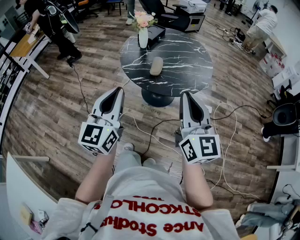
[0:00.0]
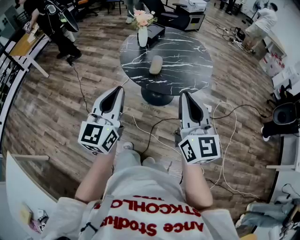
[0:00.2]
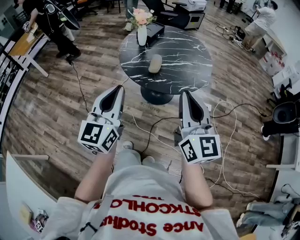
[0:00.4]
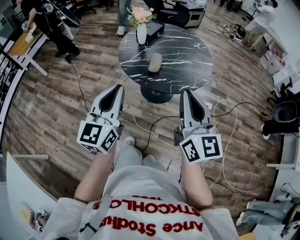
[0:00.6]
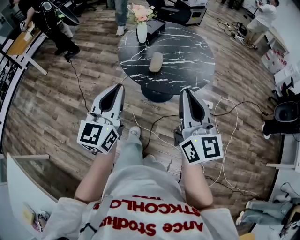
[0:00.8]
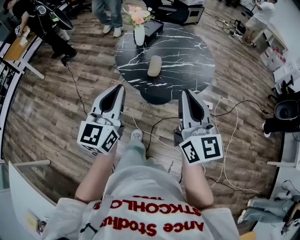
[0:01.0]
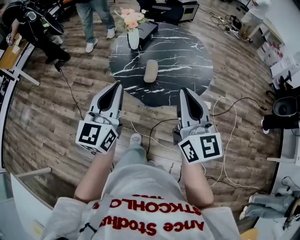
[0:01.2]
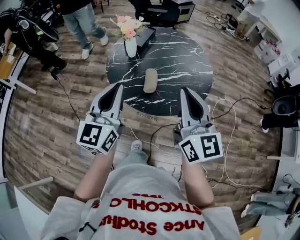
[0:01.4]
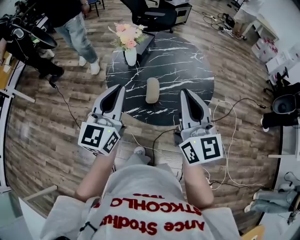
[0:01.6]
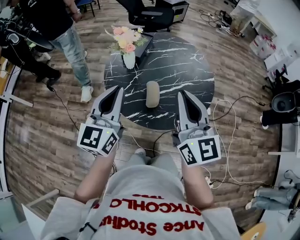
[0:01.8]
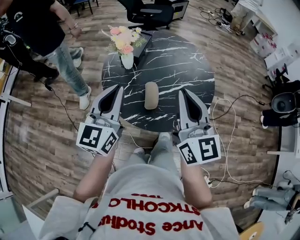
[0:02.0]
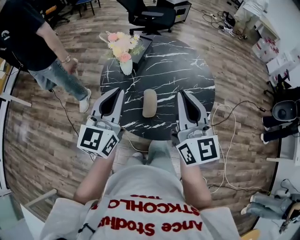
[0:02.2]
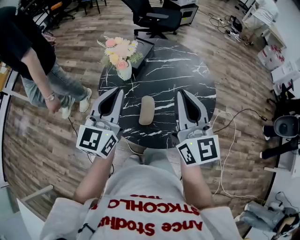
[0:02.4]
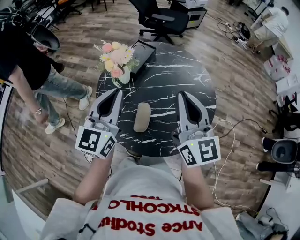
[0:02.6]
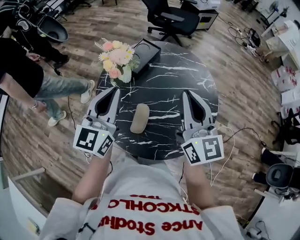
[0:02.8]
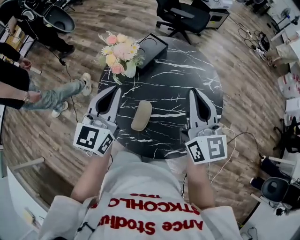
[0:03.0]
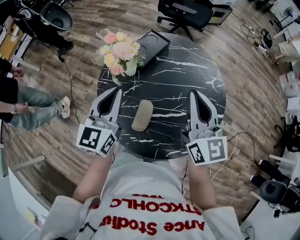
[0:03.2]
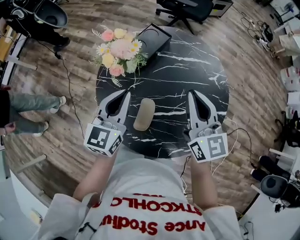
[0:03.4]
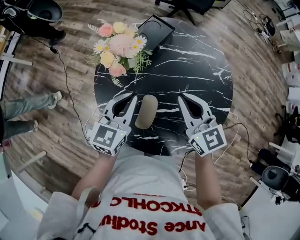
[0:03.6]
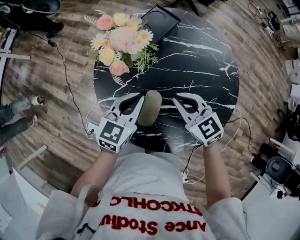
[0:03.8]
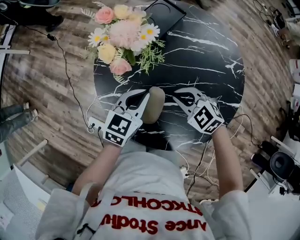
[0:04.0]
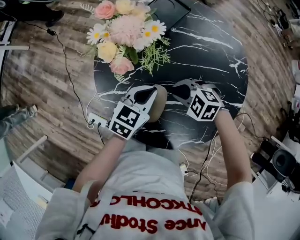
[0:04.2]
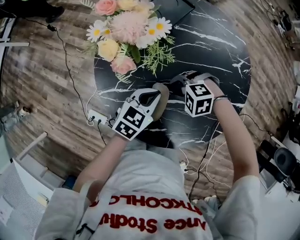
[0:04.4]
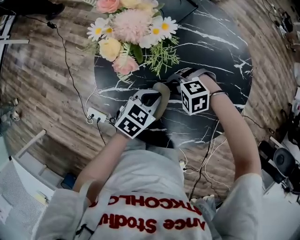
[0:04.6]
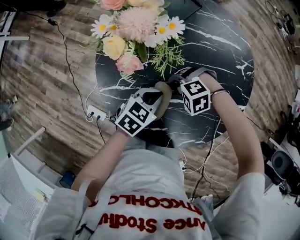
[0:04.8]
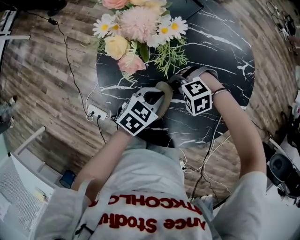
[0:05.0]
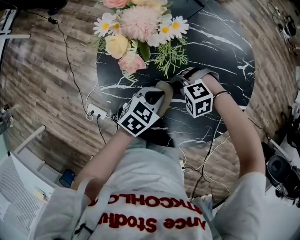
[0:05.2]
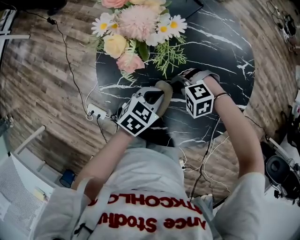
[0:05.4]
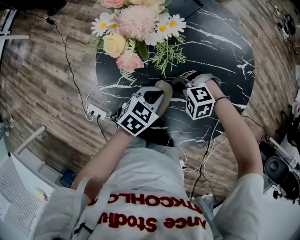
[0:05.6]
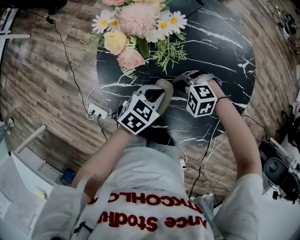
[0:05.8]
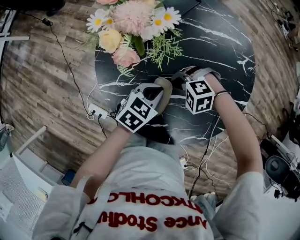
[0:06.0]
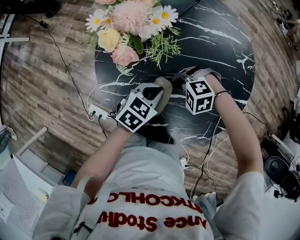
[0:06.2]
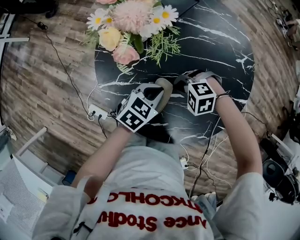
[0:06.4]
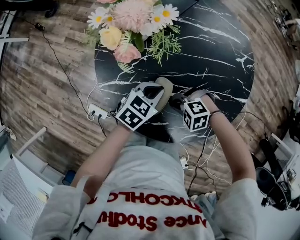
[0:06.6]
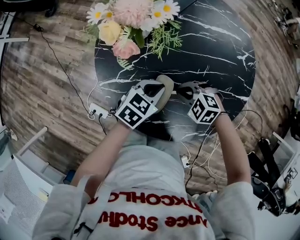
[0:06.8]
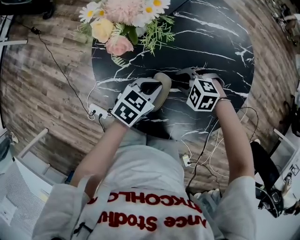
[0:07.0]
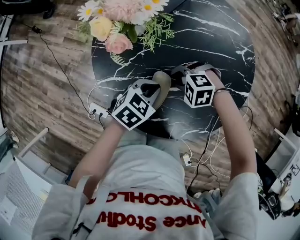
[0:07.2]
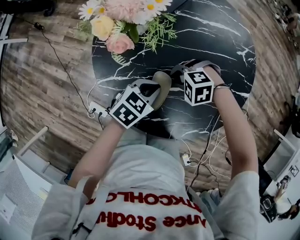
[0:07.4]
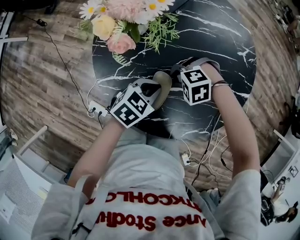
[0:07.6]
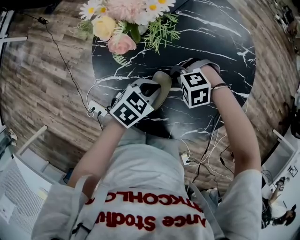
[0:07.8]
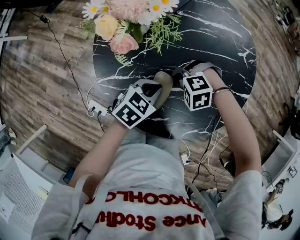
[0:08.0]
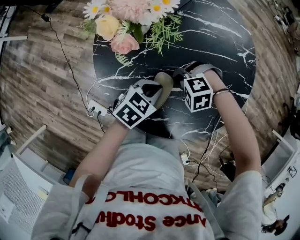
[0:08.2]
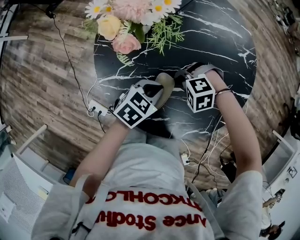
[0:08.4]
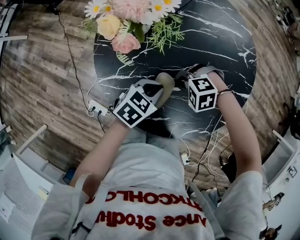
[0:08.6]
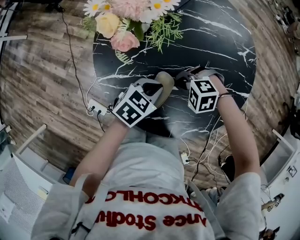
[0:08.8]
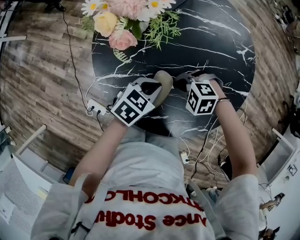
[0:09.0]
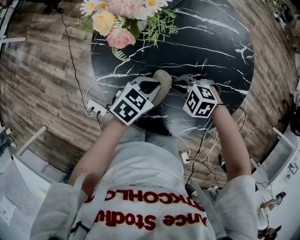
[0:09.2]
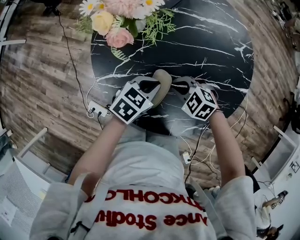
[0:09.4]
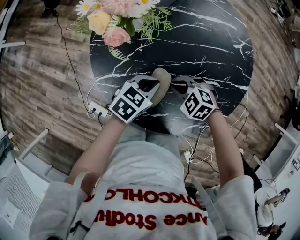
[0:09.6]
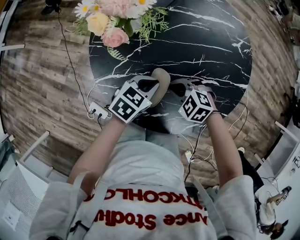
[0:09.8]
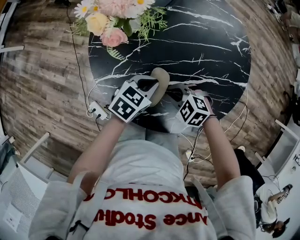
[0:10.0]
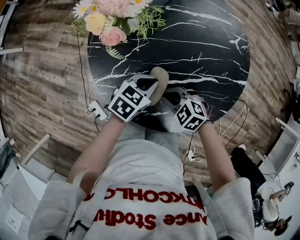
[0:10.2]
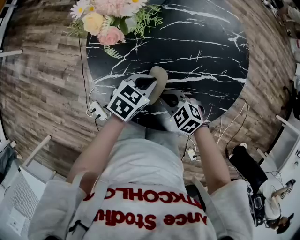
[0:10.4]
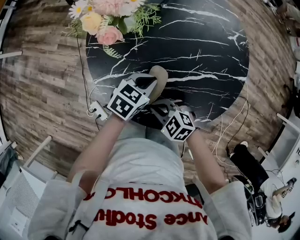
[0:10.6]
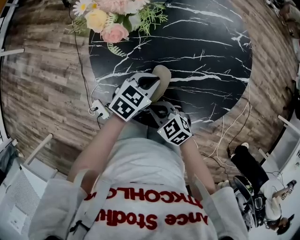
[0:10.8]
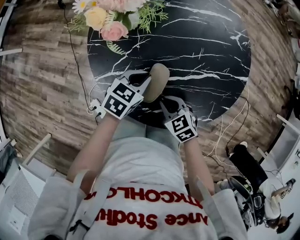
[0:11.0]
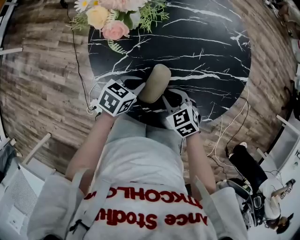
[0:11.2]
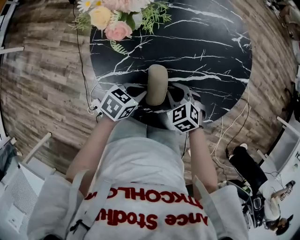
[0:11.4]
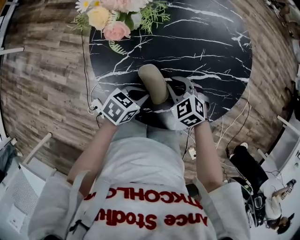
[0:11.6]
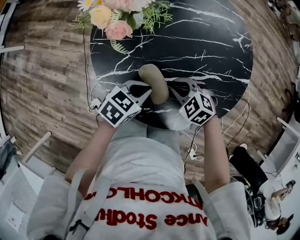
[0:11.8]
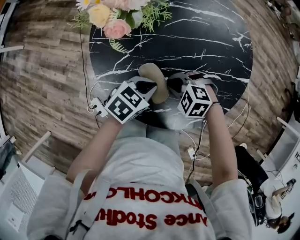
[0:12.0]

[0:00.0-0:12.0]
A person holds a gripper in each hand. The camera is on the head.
0:00.0 to 0:01.6: The two grippers go some 25 cm forward.
0:01.6 to 0:03.0: The grippers both shift forward by roughly 25 cm.
0:03.0 to 0:04.4: Both grippers travel together downward, about 35 cm. The right gripper tilts its fingers roughly 70 degrees downward, and opens. The left gripper angles its fingers downward, by some 30 degrees.
0:04.4 to 0:06.0: The right gripper closes.
0:07.6 to 0:09.0: The grippers move only a little.
0:09.0 to 0:10.4: The right gripper shifts by roughly 5 cm, and swivels some 40 degrees.
0:10.4 to 0:12.0: The right gripper rotates approximately 20 degrees.

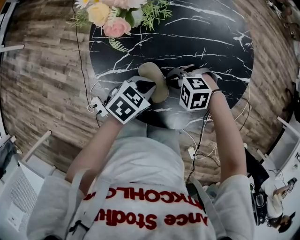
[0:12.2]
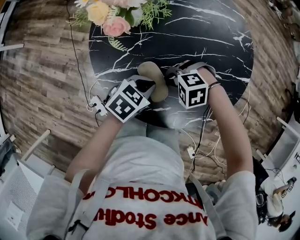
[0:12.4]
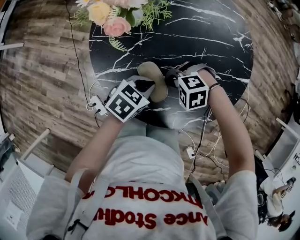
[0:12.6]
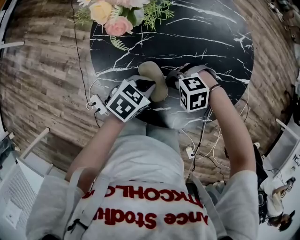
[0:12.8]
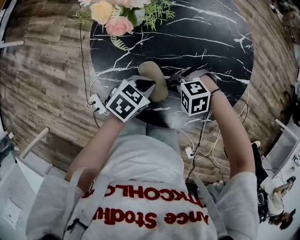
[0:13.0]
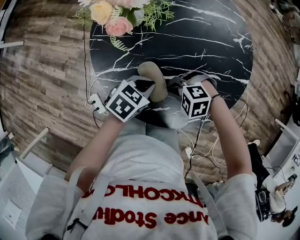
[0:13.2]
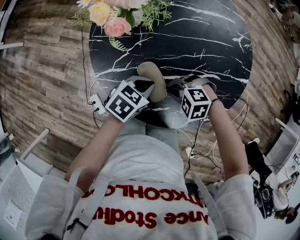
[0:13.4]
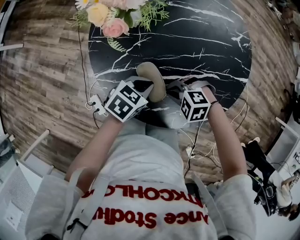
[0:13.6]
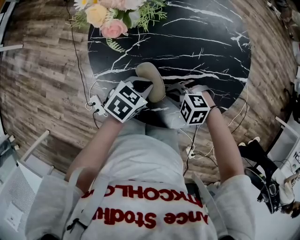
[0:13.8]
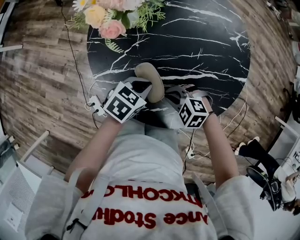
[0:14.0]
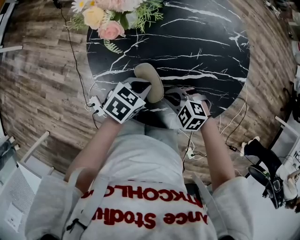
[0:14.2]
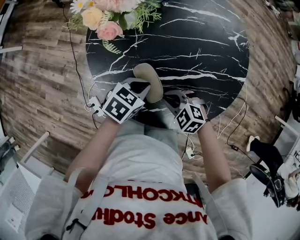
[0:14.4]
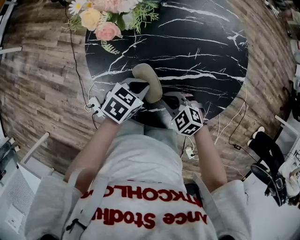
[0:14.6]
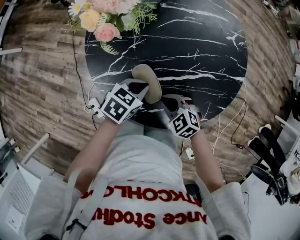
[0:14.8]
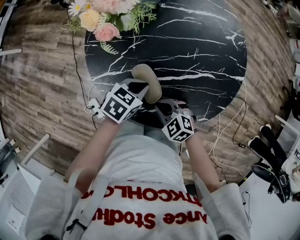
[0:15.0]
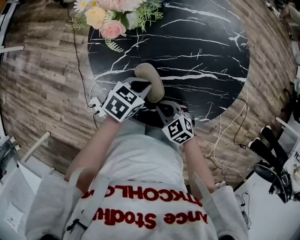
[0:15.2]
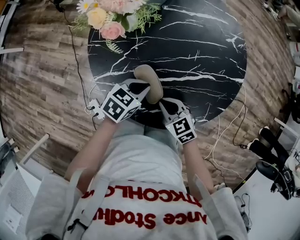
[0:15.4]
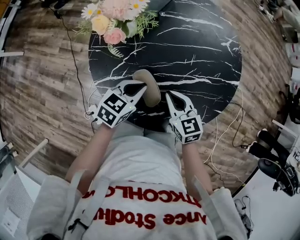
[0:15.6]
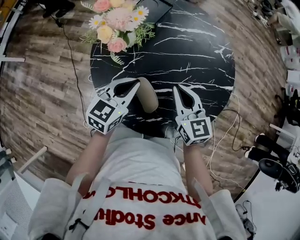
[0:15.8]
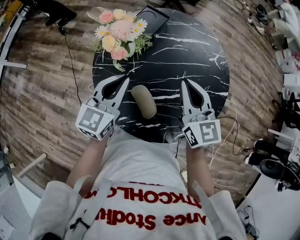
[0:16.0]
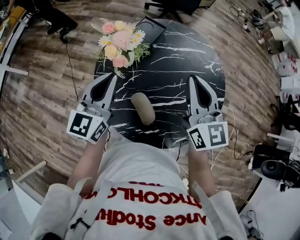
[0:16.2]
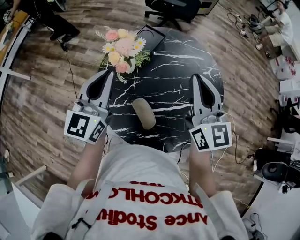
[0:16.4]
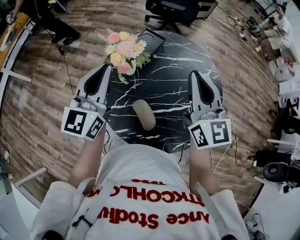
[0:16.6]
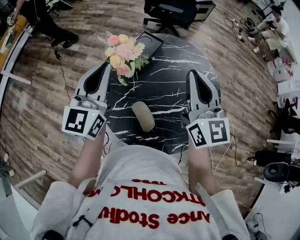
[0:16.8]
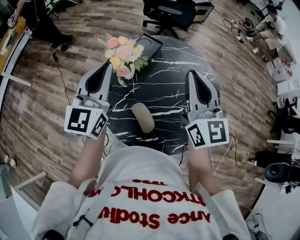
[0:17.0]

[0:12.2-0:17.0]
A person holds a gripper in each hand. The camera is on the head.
0:12.2 to 0:13.8: The grippers stay close to where they were, moving slightly.
0:13.8 to 0:15.4: The right gripper rotates roughly 50 degrees.
0:15.4 to 0:17.0: The two grippers go some 40 cm upward. The left gripper angles its fingers upward, by about 50 degrees, while the right gripper tips its fingers upward by roughly 50 degrees.

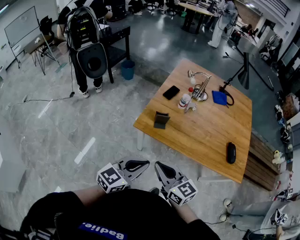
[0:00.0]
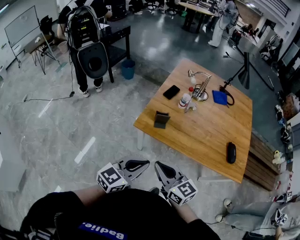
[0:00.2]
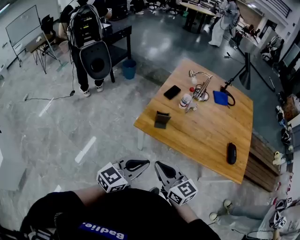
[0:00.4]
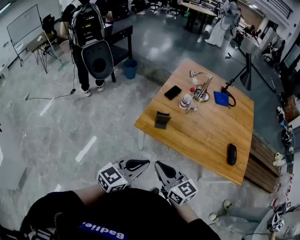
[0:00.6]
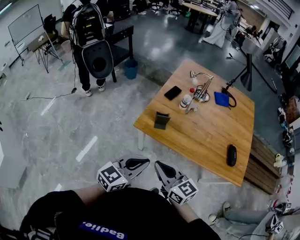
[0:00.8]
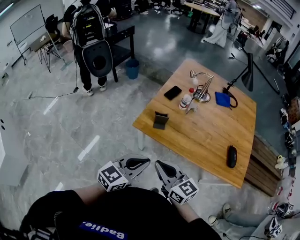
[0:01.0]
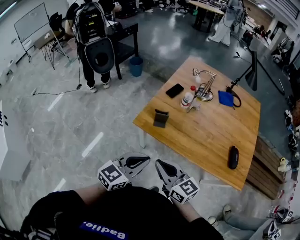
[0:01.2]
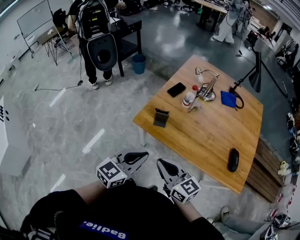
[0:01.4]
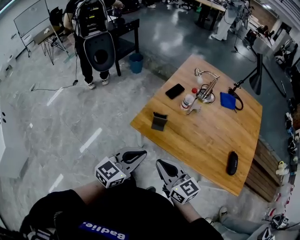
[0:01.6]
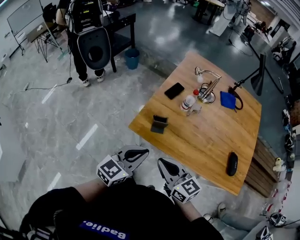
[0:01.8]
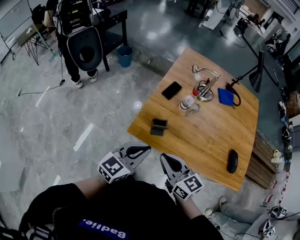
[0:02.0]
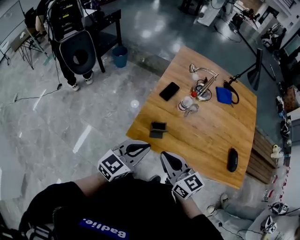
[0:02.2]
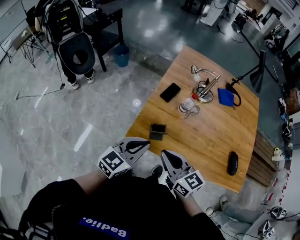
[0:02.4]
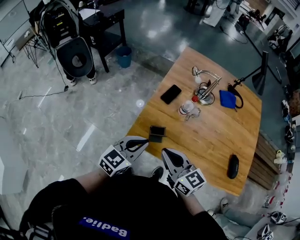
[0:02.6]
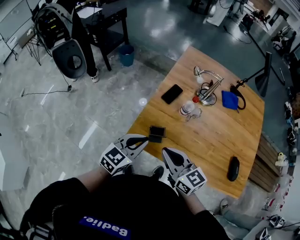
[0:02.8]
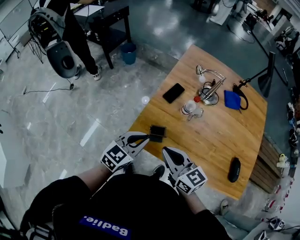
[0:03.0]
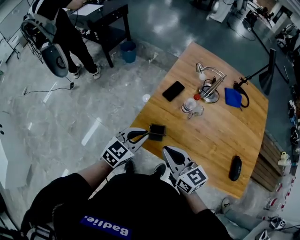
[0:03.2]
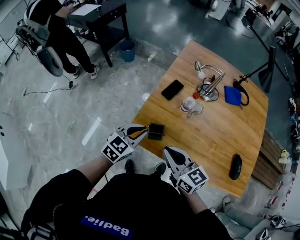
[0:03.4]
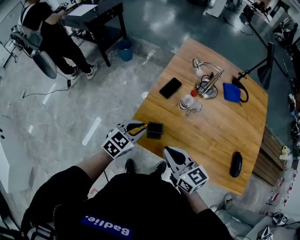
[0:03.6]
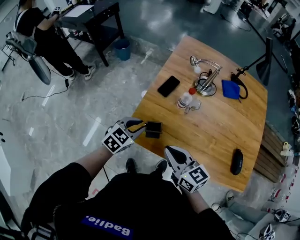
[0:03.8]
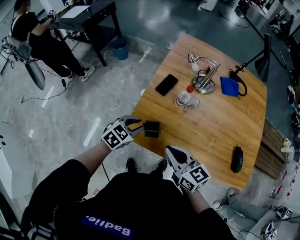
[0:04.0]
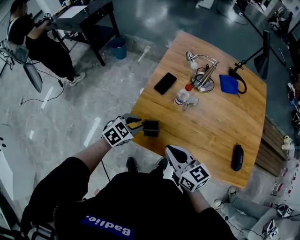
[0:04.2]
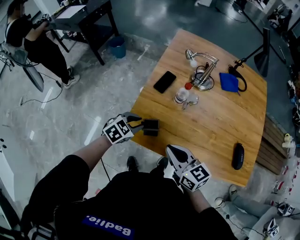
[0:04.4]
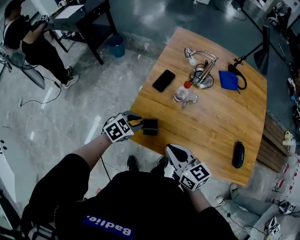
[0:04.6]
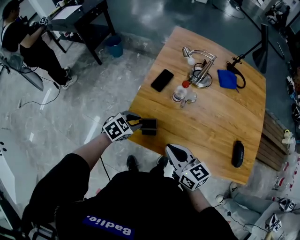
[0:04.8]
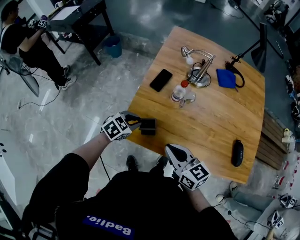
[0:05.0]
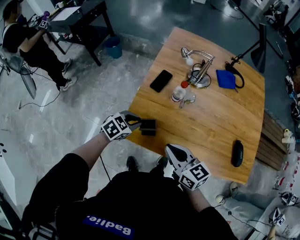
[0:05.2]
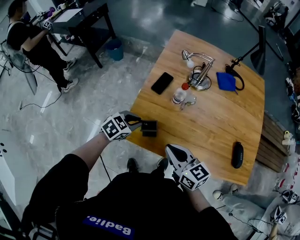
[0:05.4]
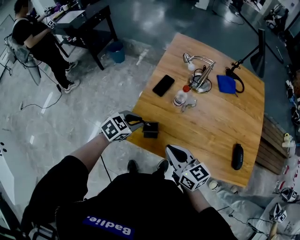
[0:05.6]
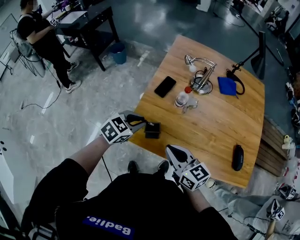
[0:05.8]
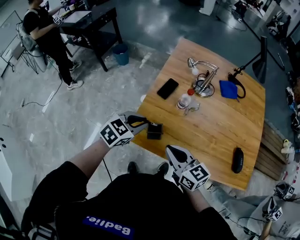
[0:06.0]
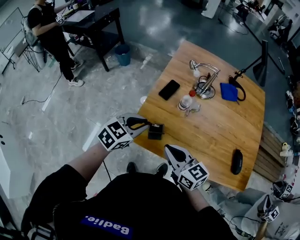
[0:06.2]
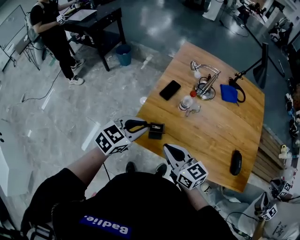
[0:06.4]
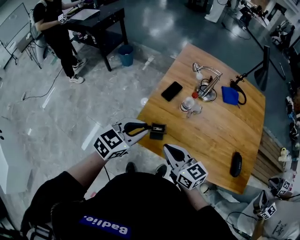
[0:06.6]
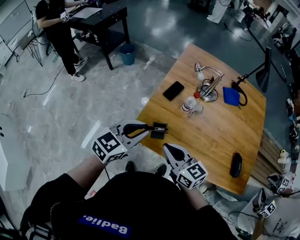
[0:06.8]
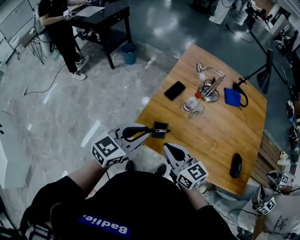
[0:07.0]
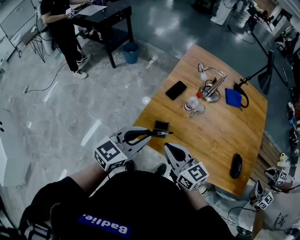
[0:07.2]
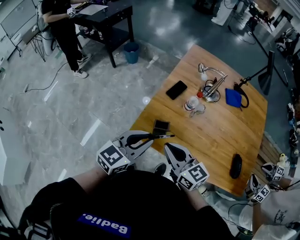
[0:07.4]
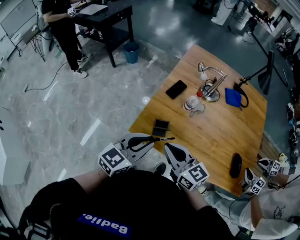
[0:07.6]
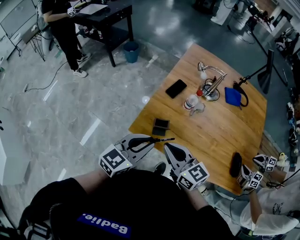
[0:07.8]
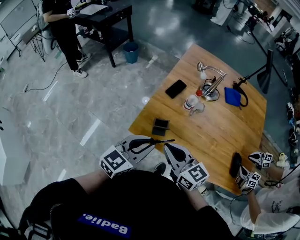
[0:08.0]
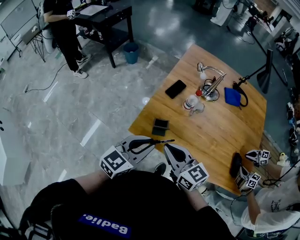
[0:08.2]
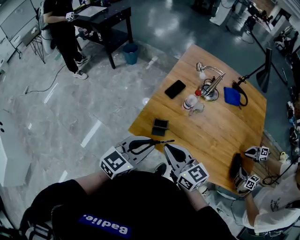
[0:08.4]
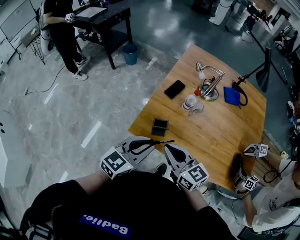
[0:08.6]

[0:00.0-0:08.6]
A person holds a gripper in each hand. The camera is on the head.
0:00.0 to 0:01.4: The right gripper is displaced to the right by some 5 cm. The left gripper changes place by some 5 cm.
0:01.4 to 0:02.8: The grippers both shift forward by some 20 cm.
0:02.8 to 0:04.4: The left gripper travels downward and forward by about 15 cm, changes its angle by some 30 degrees, and opens up. Meanwhile the right gripper travels to the right by approximately 5 cm.
0:04.4 to 0:05.8: The left gripper moves upward, about 5 cm.
0:05.8 to 0:07.2: The right gripper goes about 5 cm to the left. Meanwhile the left gripper goes roughly 15 cm upward and backward, and rotates some 30 degrees.
0:07.2 to 0:08.6: The left gripper ends up approximately 5 cm from where it was.
